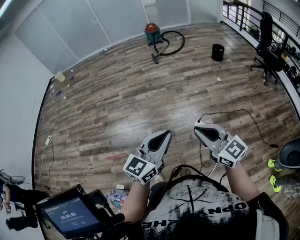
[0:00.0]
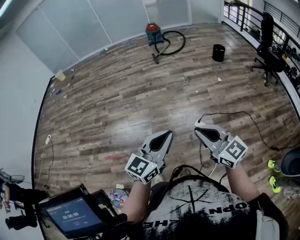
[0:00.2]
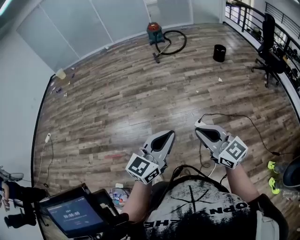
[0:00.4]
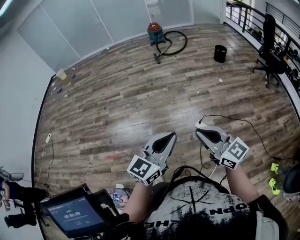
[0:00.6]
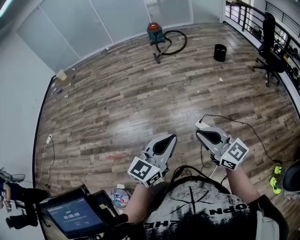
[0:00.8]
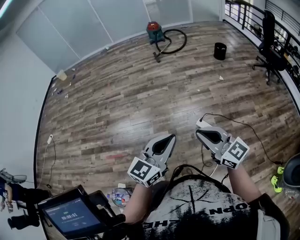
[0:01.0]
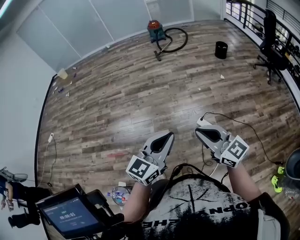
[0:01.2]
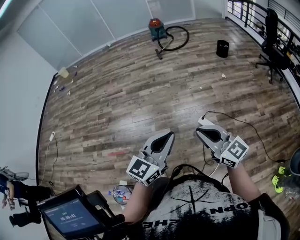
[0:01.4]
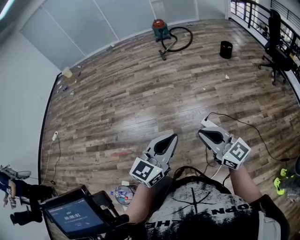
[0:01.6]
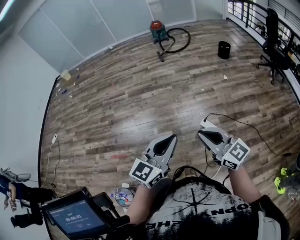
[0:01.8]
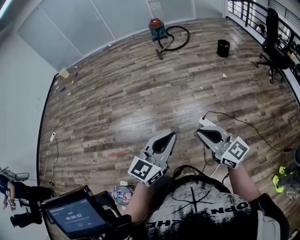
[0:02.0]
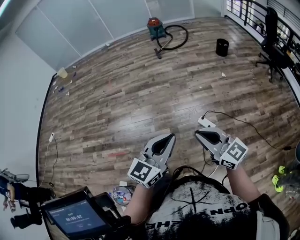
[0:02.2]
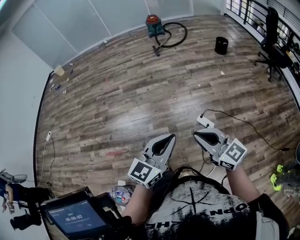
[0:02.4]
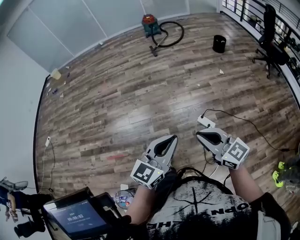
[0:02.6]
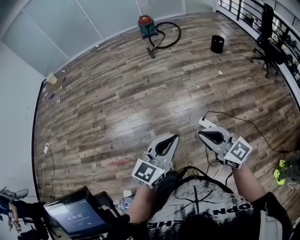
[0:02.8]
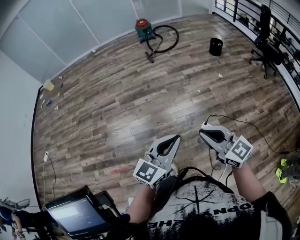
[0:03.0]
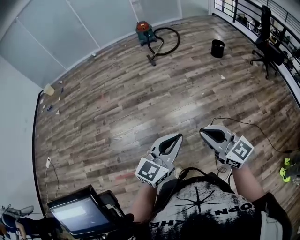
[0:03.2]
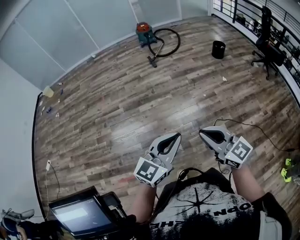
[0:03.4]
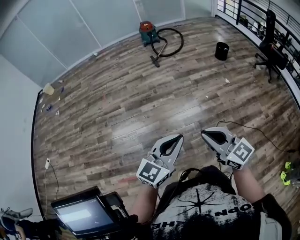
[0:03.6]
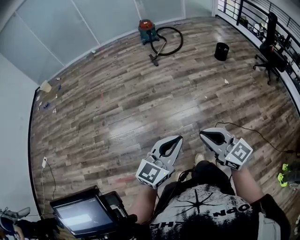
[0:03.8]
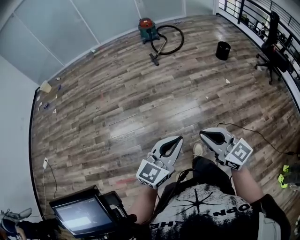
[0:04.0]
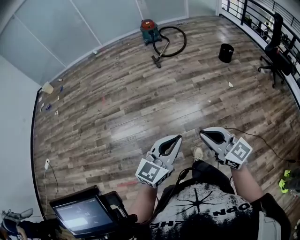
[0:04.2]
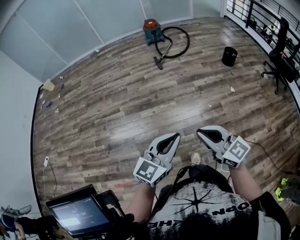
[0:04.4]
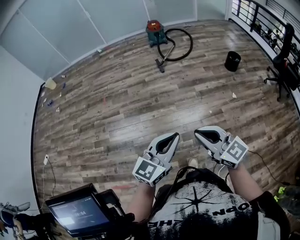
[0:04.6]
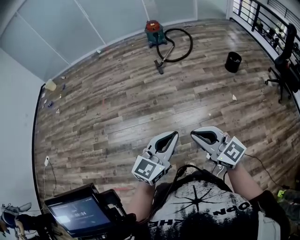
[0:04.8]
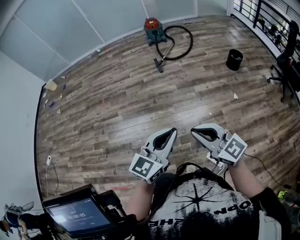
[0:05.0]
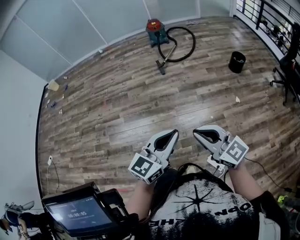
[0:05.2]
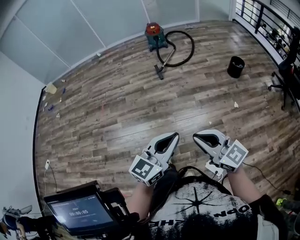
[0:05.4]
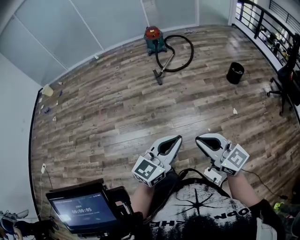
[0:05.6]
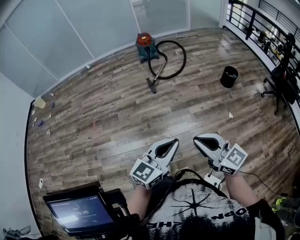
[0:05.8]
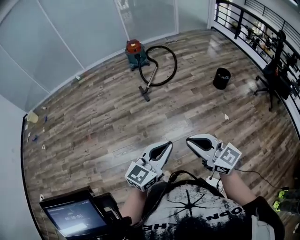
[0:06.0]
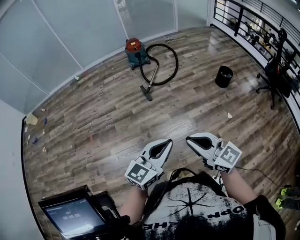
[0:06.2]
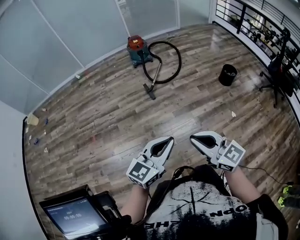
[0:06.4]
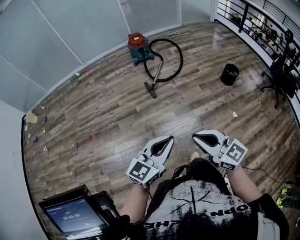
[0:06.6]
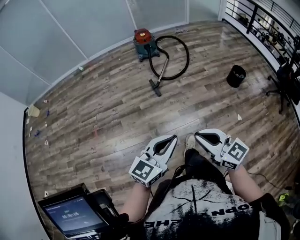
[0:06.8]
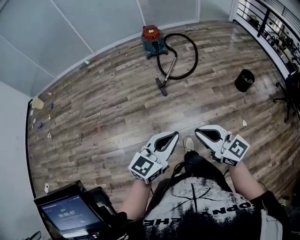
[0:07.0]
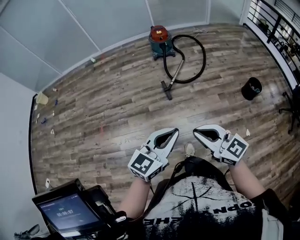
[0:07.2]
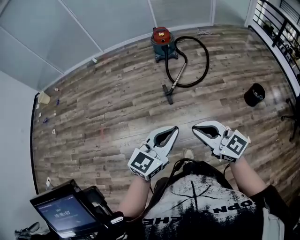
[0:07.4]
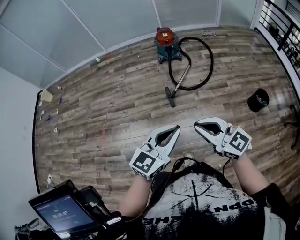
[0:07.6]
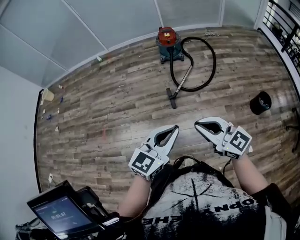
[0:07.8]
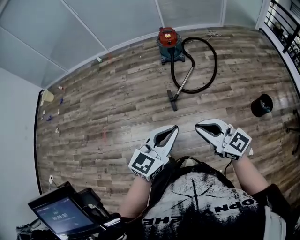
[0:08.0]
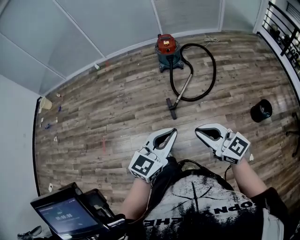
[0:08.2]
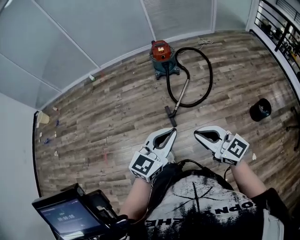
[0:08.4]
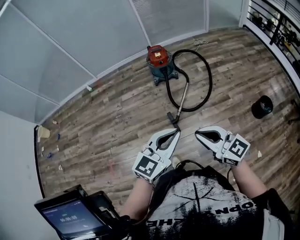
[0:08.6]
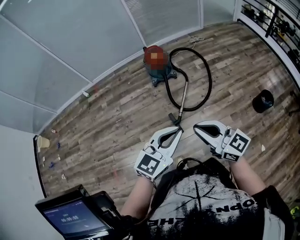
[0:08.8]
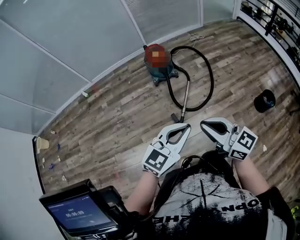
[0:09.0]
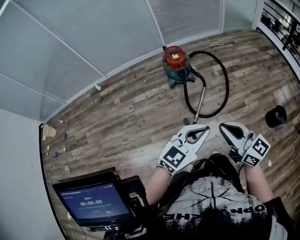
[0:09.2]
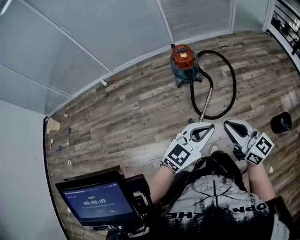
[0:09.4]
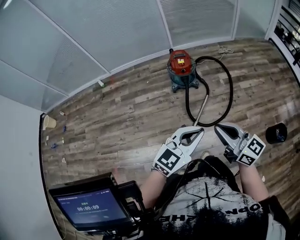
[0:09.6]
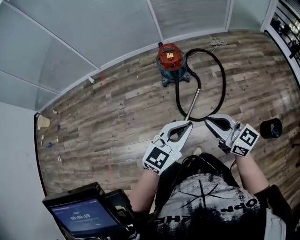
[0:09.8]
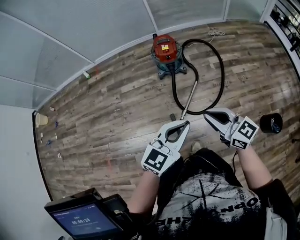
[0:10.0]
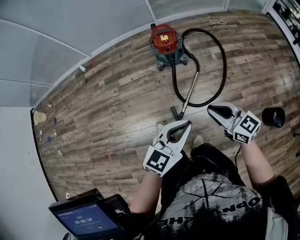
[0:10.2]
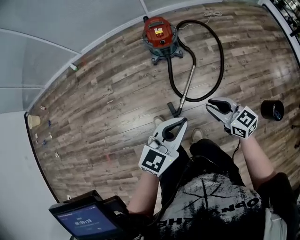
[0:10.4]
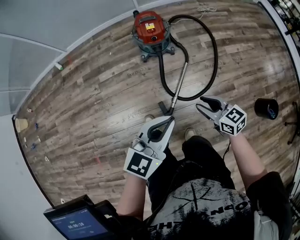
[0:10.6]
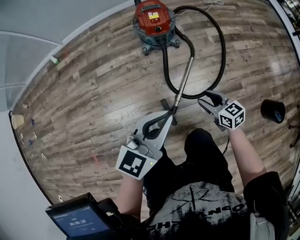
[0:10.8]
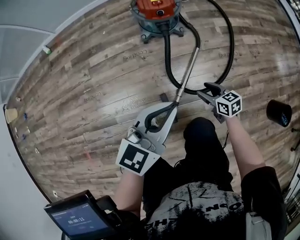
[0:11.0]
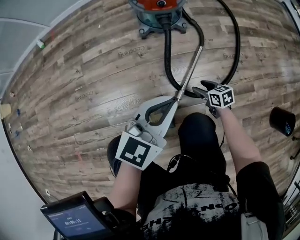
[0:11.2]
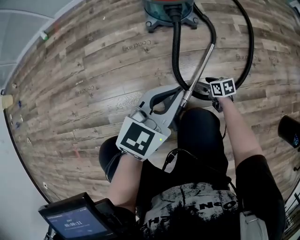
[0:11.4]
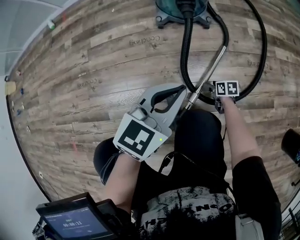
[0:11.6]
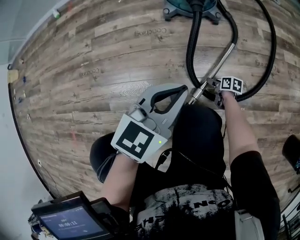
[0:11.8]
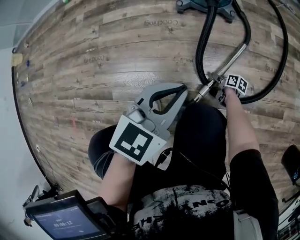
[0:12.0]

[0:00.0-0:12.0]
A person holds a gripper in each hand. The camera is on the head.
0:00.0 to 0:01.6: There are only small adjustments of the grippers.
0:01.6 to 0:03.0: The grippers both shift forward and to the left by roughly 20 cm.
0:03.0 to 0:04.4: The two grippers go some 25 cm forward.
0:04.4 to 0:06.0: The grippers both shift forward by roughly 40 cm.
0:06.0 to 0:07.6: Both grippers are carried forward, about 40 cm.
0:07.6 to 0:09.0: The two grippers go about 35 cm forward. The right gripper swivels approximately 20 degrees.
0:09.0 to 0:10.4: The right gripper is displaced forward and downward by approximately 35 cm, and rotates some 20 degrees. The left gripper travels forward by approximately 25 cm.
0:10.4 to 0:12.0: The right gripper shifts some 80 cm downward, twists roughly 60 degrees clockwise, seen from behind, and opens; the left gripper goes about 50 cm downward, and changes its angle by roughly 20 degrees.

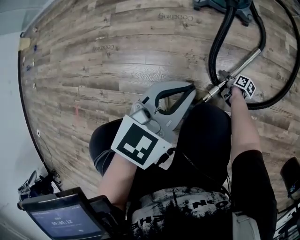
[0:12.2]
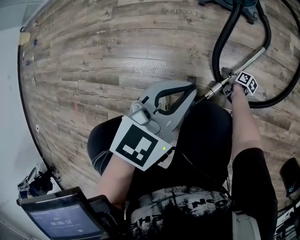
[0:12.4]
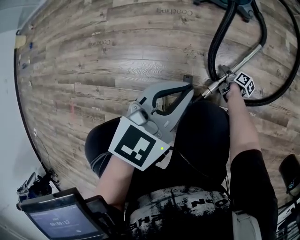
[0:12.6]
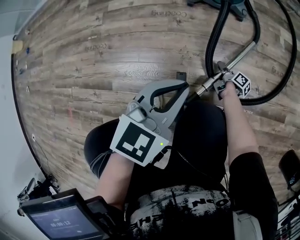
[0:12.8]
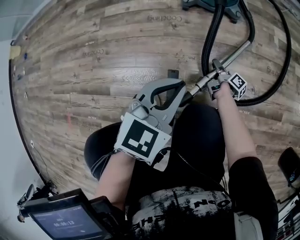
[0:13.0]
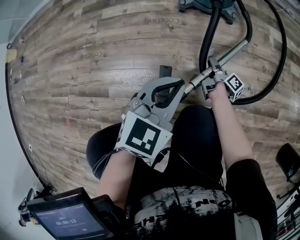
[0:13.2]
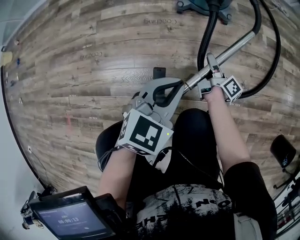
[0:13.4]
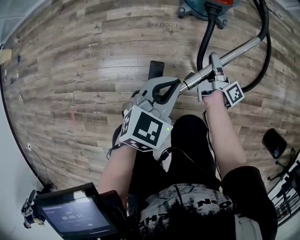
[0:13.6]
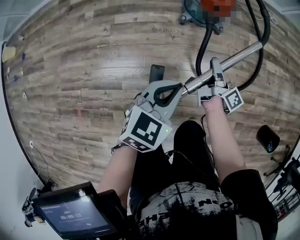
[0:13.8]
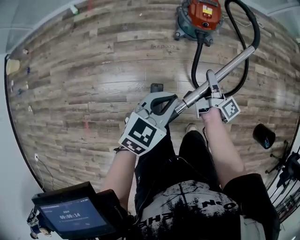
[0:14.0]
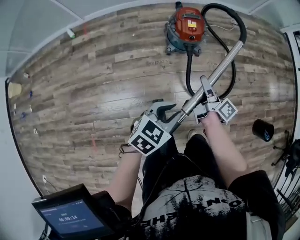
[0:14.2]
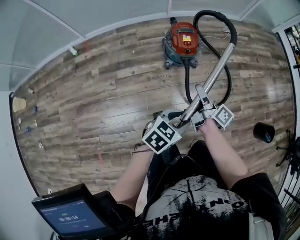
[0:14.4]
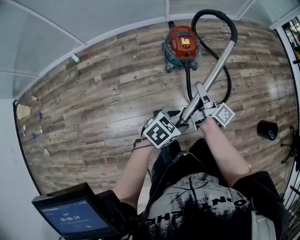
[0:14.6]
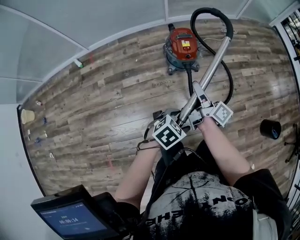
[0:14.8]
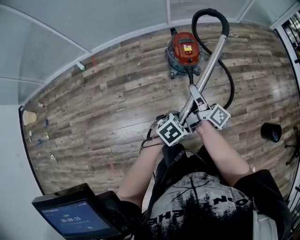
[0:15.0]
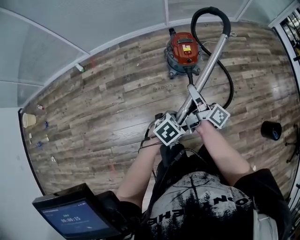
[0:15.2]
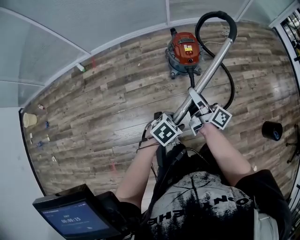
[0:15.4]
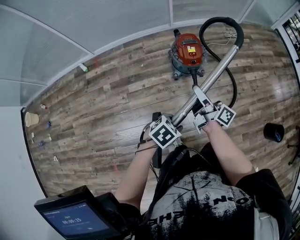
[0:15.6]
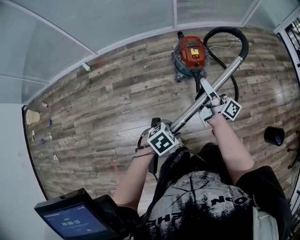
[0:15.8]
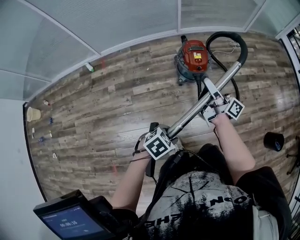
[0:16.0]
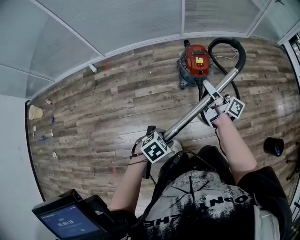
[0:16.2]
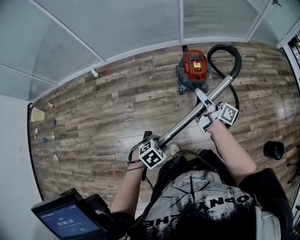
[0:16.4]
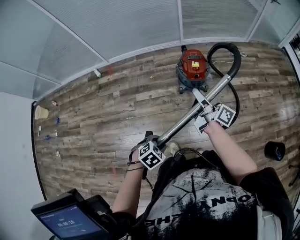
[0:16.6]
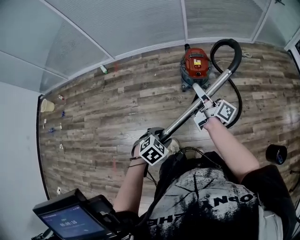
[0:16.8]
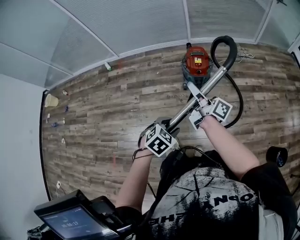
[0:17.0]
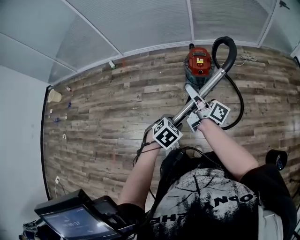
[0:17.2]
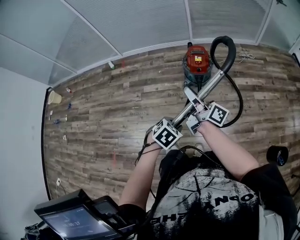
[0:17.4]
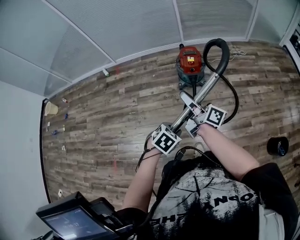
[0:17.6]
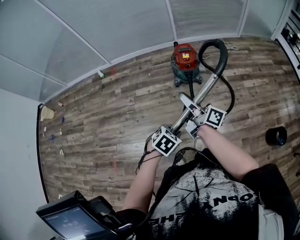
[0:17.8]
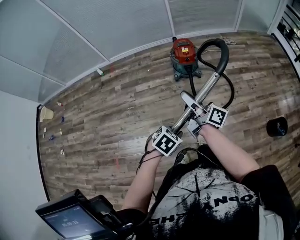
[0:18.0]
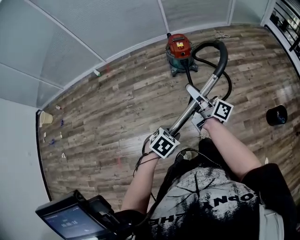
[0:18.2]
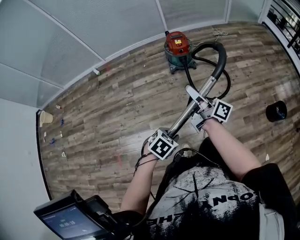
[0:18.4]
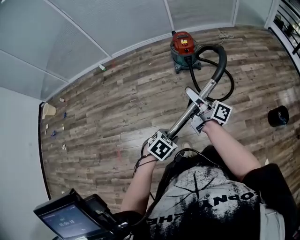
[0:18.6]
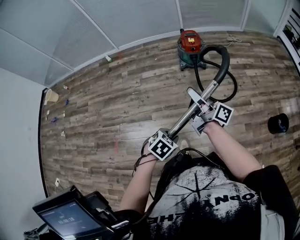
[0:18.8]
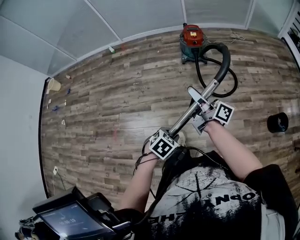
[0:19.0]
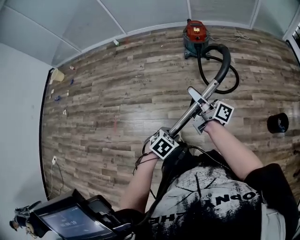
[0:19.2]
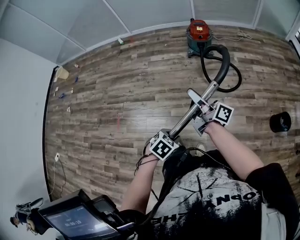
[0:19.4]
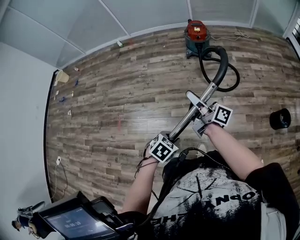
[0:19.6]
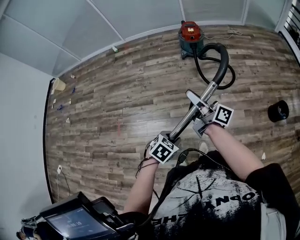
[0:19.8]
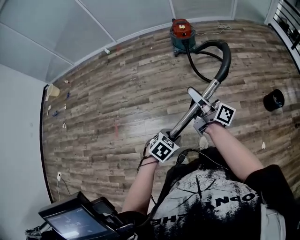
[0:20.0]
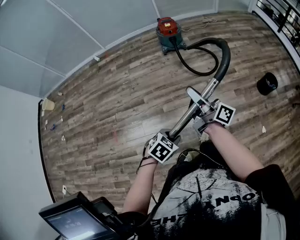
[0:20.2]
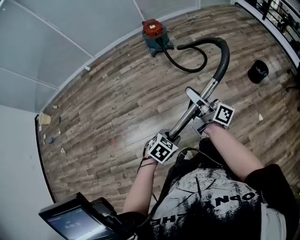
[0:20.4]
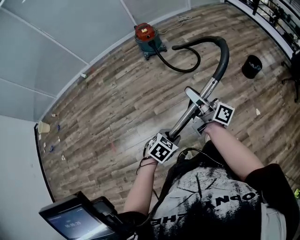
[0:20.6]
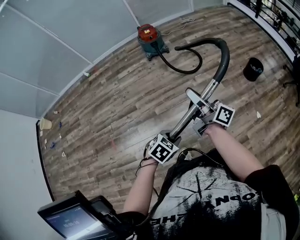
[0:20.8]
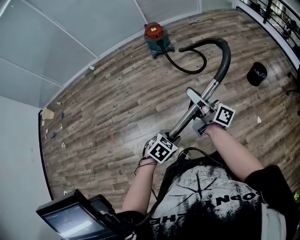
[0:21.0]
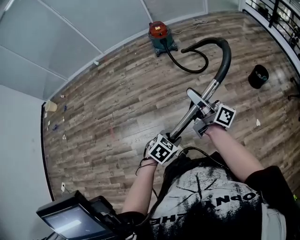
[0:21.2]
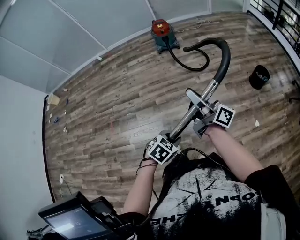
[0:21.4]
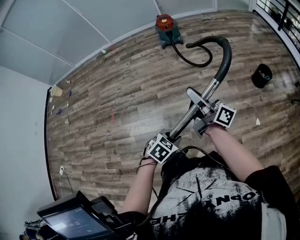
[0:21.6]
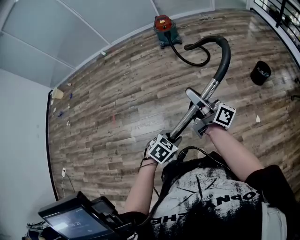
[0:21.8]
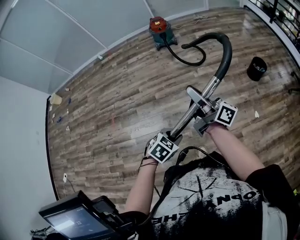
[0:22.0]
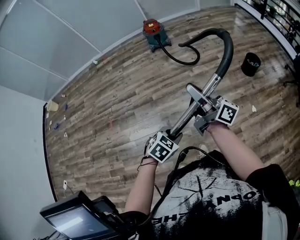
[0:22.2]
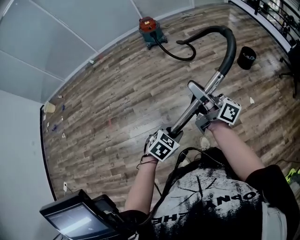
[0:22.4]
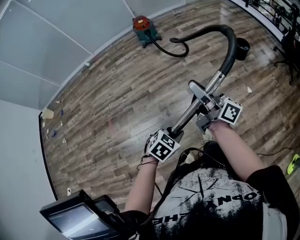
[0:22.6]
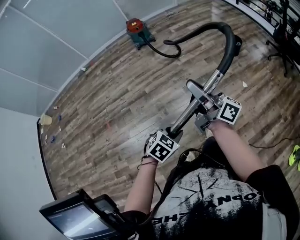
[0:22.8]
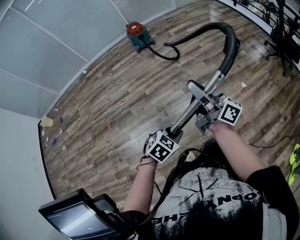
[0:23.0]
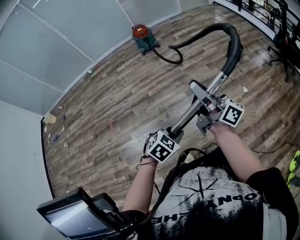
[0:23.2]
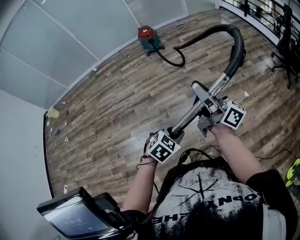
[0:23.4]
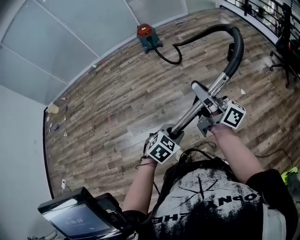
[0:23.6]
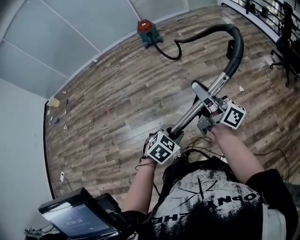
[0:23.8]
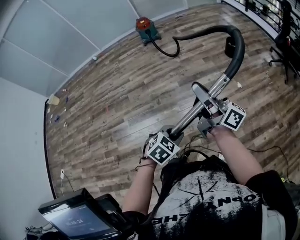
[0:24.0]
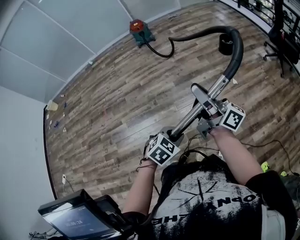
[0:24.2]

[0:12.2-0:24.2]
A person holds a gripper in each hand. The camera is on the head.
0:12.2 to 0:13.8: The right gripper travels upward by about 60 cm, and tips its fingers upward by about 40 degrees, while the left gripper is displaced upward by about 25 cm.
0:13.8 to 0:15.2: The right gripper shifts about 35 cm upward; the left gripper is displaced upward by approximately 10 cm, rotates roughly 40 degrees, and opens its fingers.
0:15.2 to 0:16.6: The right gripper heads upward, covering some 5 cm, and closes. The left gripper moves backward, some 10 cm, turns by about 20 degrees, and closes up.
0:16.6 to 0:18.2: The right gripper goes about 30 cm backward. Meanwhile the left gripper moves backward and to the right, about 25 cm.
0:18.2 to 0:19.8: Both grippers travel together backward, approximately 30 cm.
0:19.8 to 0:21.2: Both grippers move backward and to the right, approximately 25 cm.
0:21.2 to 0:22.6: The grippers both shift backward by about 25 cm.
0:22.6 to 0:24.2: Both grippers travel together backward and to the right, some 30 cm.
